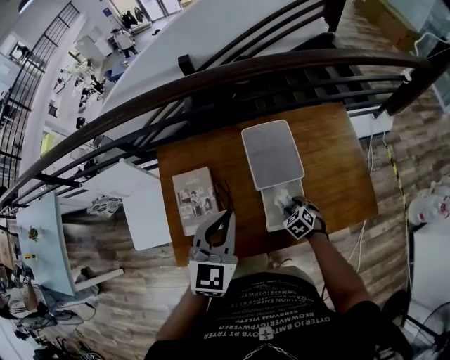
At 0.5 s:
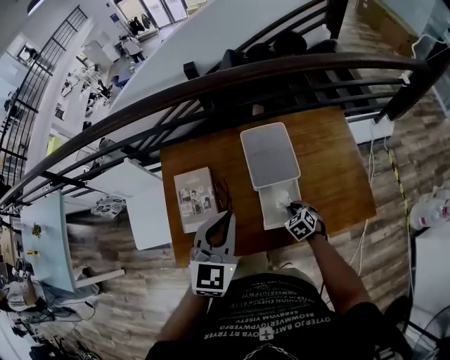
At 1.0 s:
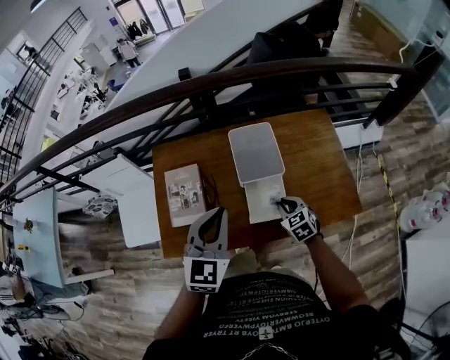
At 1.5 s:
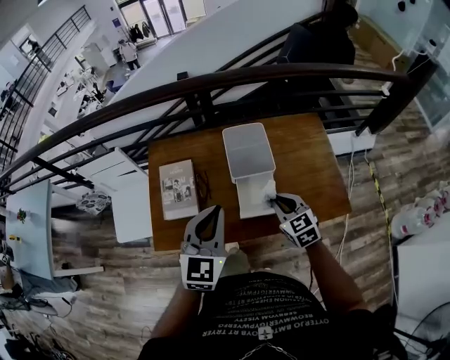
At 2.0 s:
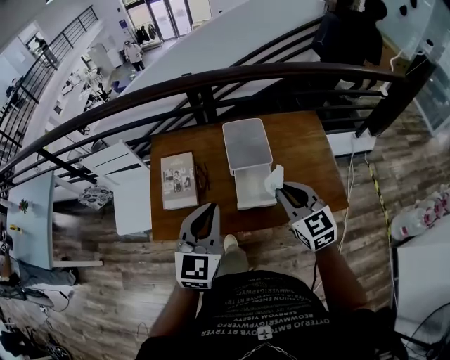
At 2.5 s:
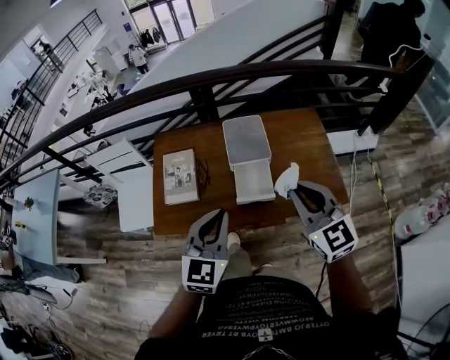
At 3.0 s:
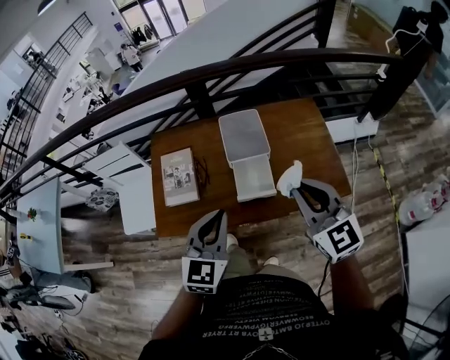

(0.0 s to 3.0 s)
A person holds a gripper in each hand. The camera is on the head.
0.0 s - 1.5 s: The left gripper heads backward, covering some 10 cm. The right gripper shifts some 25 cm upward, points its fingers some 30 degrees further upward, and closes its fingers.
1.5 s - 3.0 s: The right gripper heads upward and backward, covering about 25 cm, and rotates roughly 30 degrees. The left gripper goes roughly 10 cm backward.

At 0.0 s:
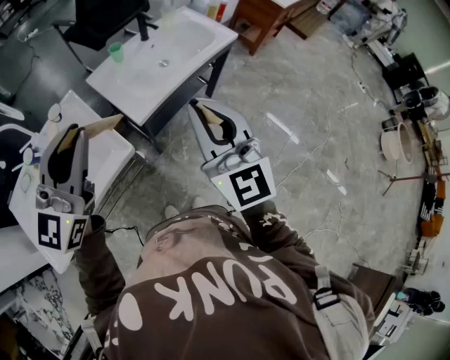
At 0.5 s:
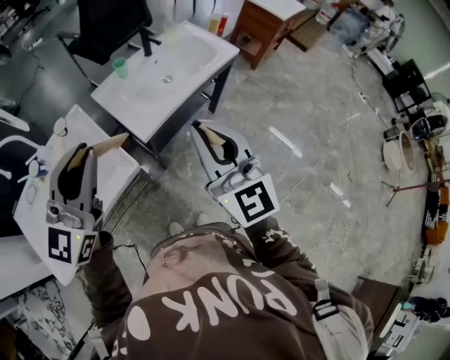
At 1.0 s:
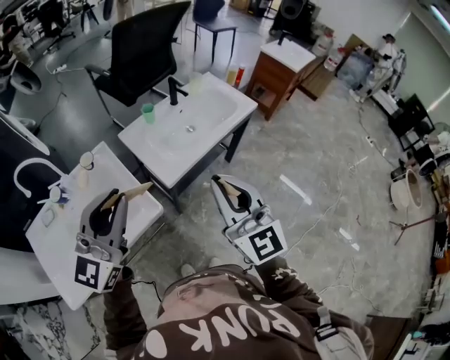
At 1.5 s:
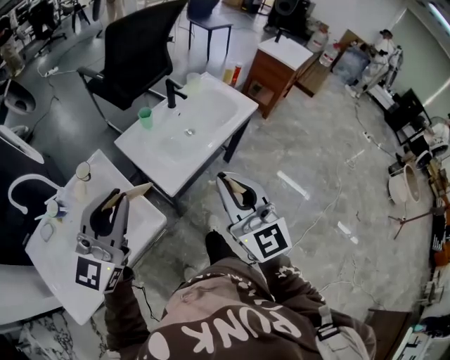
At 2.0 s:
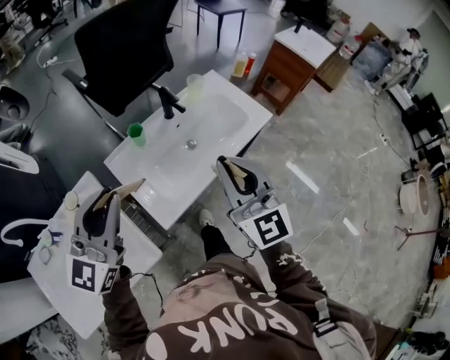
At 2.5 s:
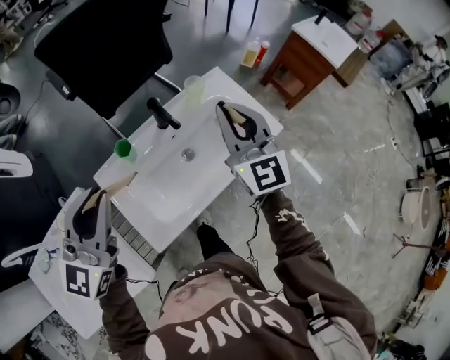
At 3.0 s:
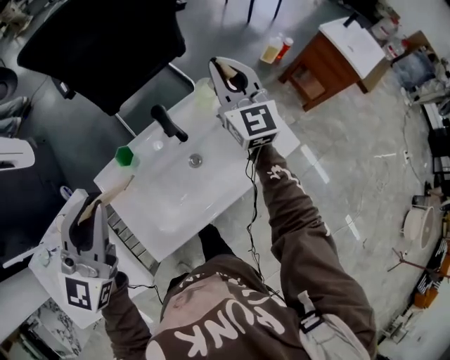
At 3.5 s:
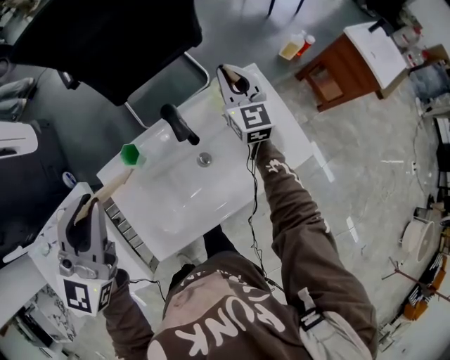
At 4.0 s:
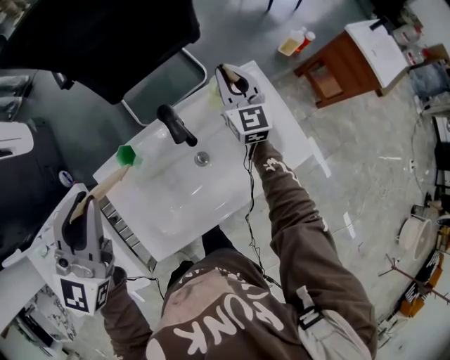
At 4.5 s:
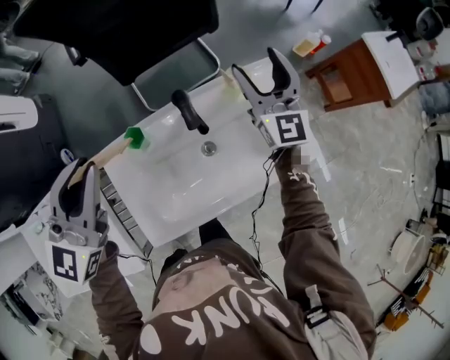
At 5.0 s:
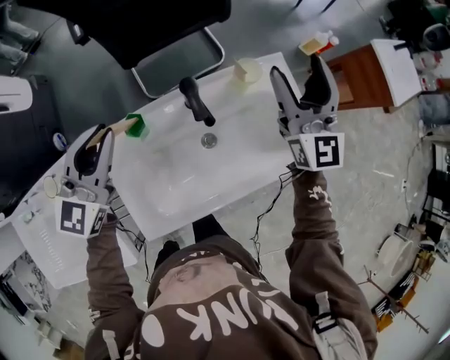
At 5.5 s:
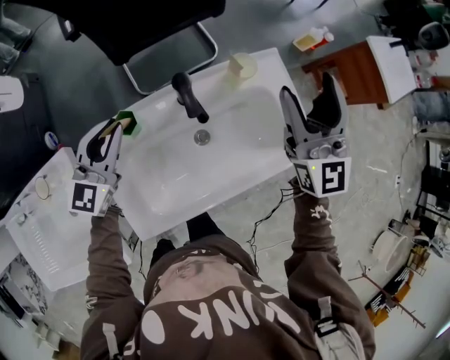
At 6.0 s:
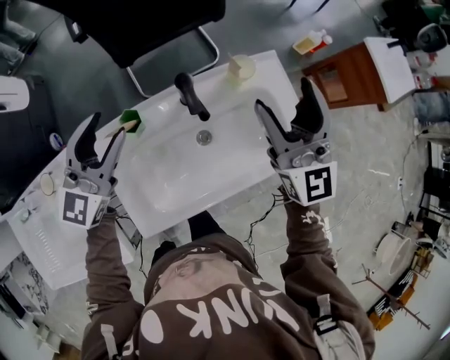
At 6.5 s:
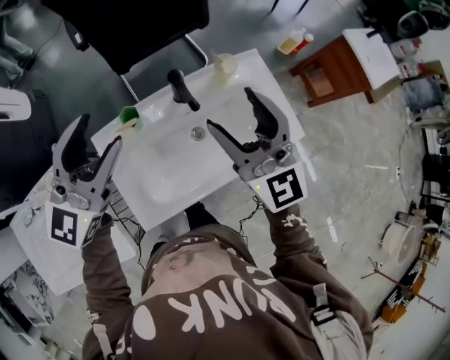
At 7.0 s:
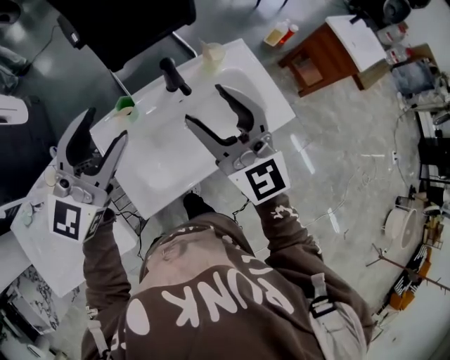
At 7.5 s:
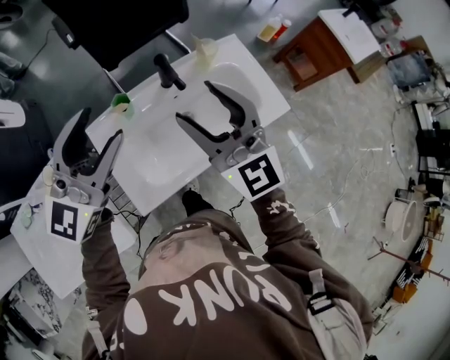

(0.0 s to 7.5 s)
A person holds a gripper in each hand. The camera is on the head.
0.0 s - 2.0 s: The two grippers go some 25 cm forward.
2.0 s - 4.0 s: The right gripper shifts about 50 cm forward. Meanwhile the left gripper is displaced forward by some 25 cm.
4.0 s - 5.5 s: The left gripper moves downward, some 20 cm, while the right gripper moves upward, backward and to the right, roughly 20 cm, and opens its fingers.
5.5 s - 7.5 s: The left gripper is displaced upward and backward by some 25 cm, changes its angle by some 20 degrees, and opens its fingers; the right gripper travels backward and to the left by roughly 20 cm.

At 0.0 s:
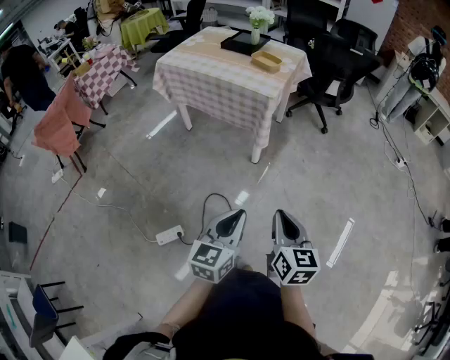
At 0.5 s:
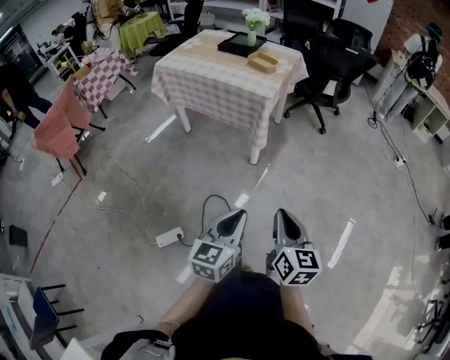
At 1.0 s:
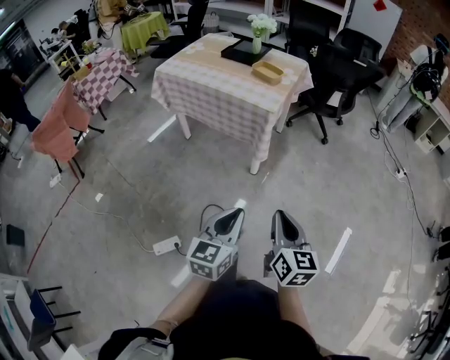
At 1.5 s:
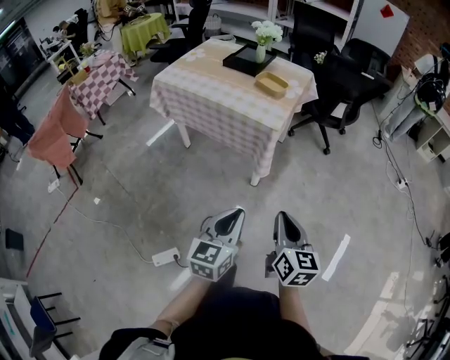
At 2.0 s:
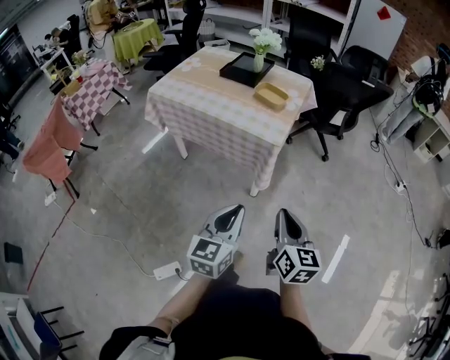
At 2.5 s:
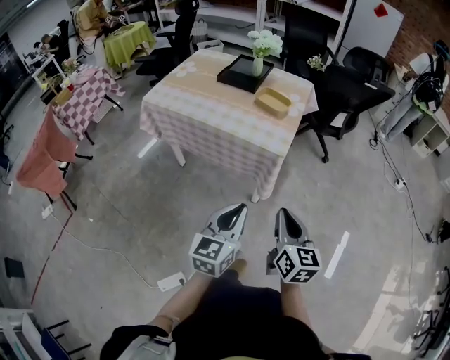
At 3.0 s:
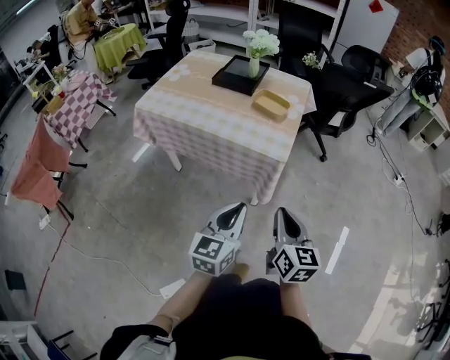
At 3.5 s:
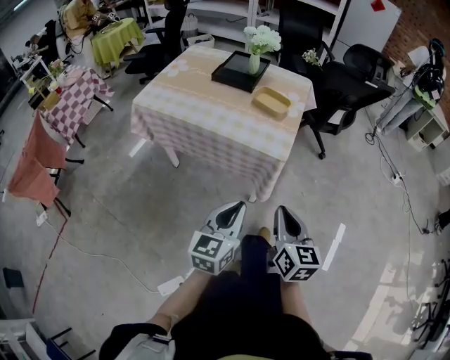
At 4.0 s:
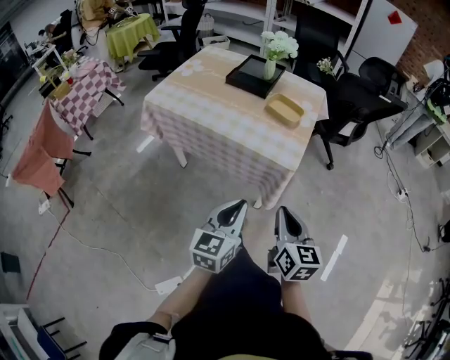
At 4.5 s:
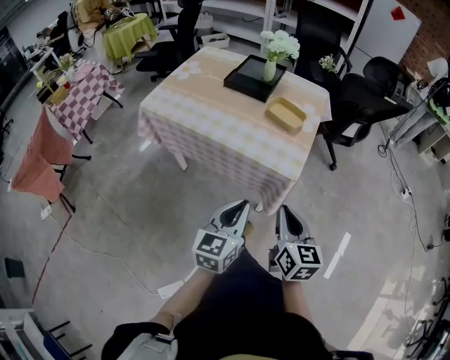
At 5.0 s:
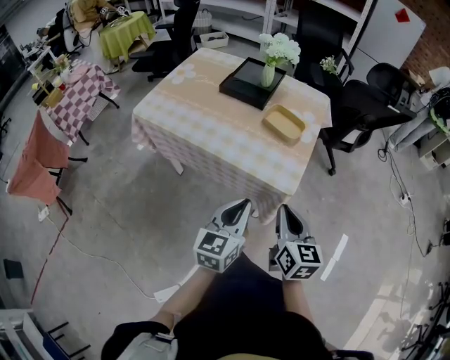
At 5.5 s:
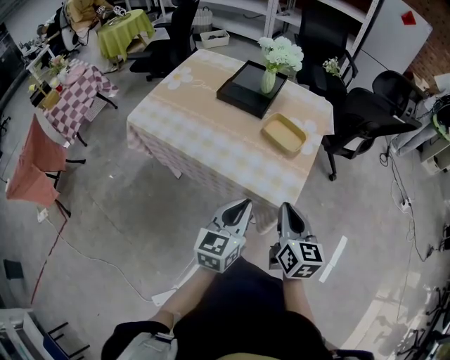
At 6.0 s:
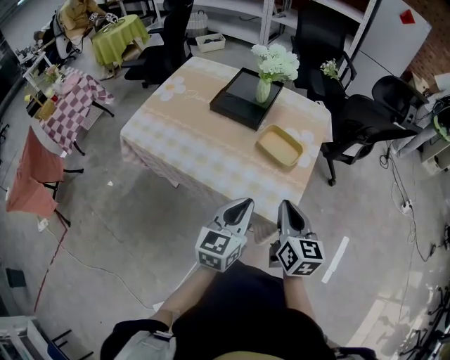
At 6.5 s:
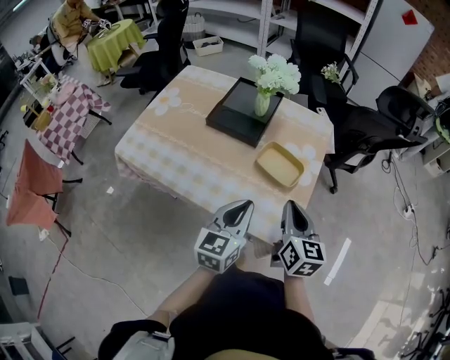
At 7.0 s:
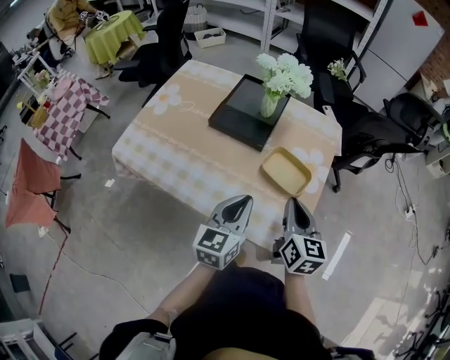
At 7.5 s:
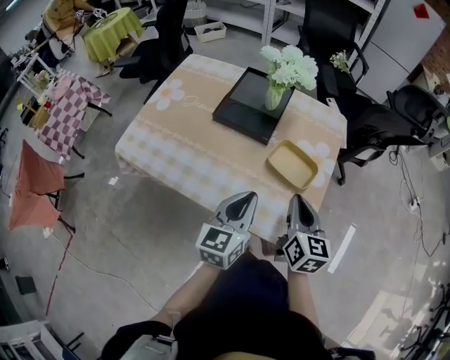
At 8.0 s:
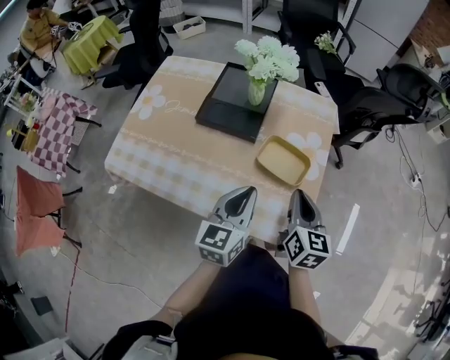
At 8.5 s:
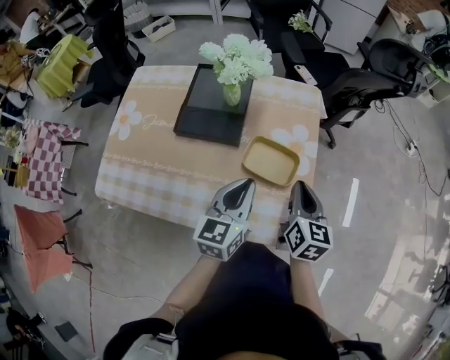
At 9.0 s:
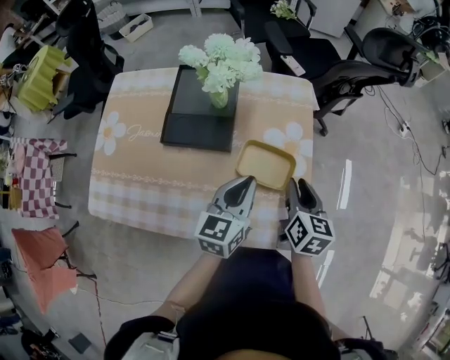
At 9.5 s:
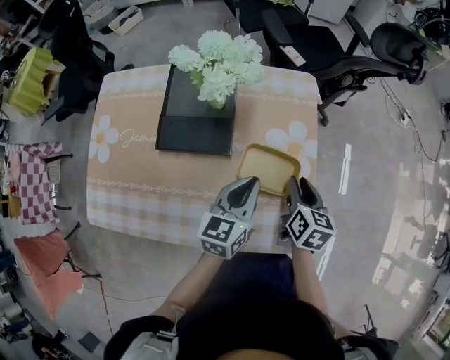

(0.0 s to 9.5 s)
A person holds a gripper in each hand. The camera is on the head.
0.0 s - 2.0 s: Both grippers move forward, approximately 25 cm.
2.0 s - 4.0 s: Both grippers travel together forward and to the left, some 15 cm.
4.0 s - 5.5 s: Both grippers move forward, about 20 cm.
5.5 s - 7.5 s: The grippers both shift forward by some 15 cm.
7.5 s - 9.5 s: The left gripper heads forward, covering about 15 cm, and swivels some 20 degrees; the right gripper goes some 15 cm forward and downward, changes its angle by roughly 30 degrees, and opens.

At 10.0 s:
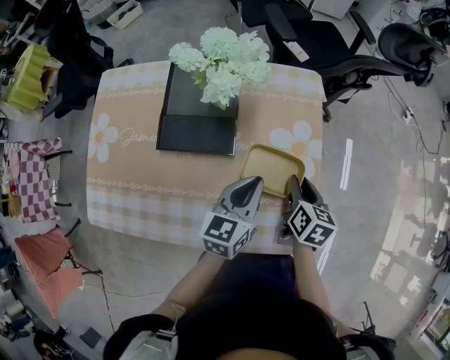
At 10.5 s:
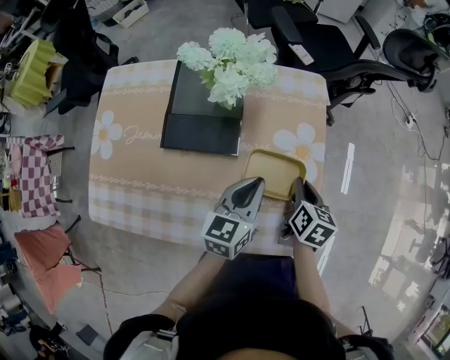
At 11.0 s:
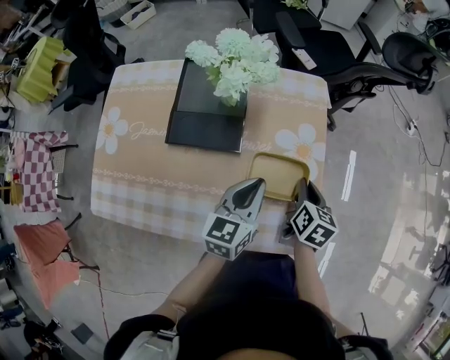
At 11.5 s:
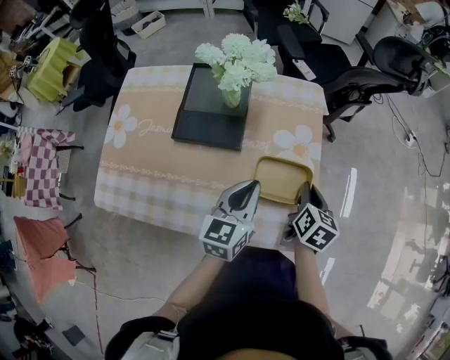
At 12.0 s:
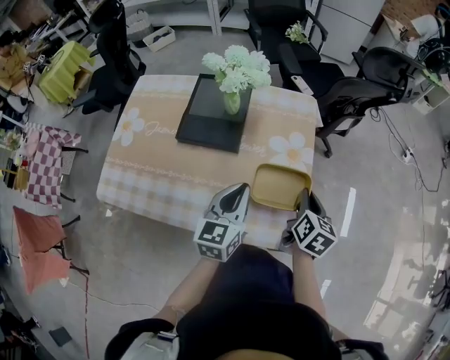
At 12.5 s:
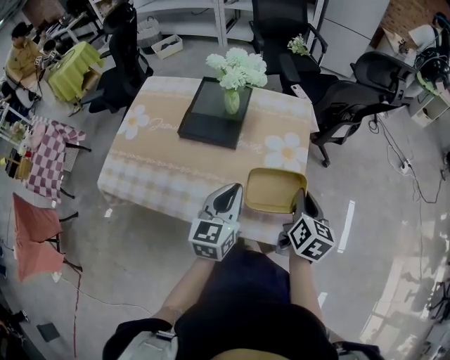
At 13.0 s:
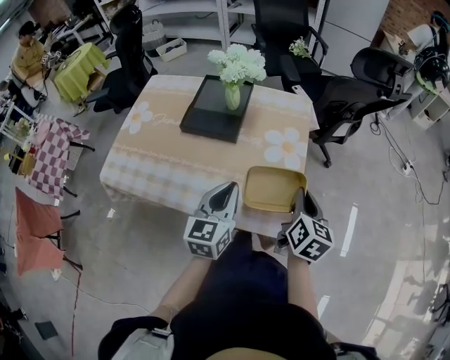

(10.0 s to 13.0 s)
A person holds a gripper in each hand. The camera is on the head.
10.0 s - 11.5 s: The left gripper moves roughly 5 cm; the right gripper closes its fingers.
11.5 s - 13.0 s: The left gripper heads backward, covering approximately 10 cm, while the right gripper moves backward and upward, about 10 cm.

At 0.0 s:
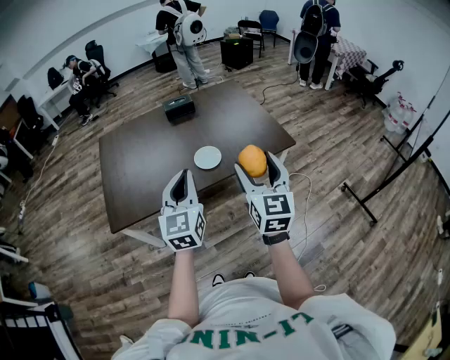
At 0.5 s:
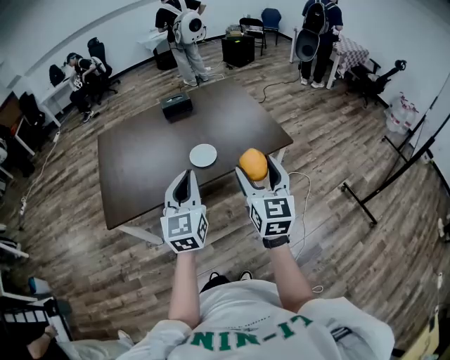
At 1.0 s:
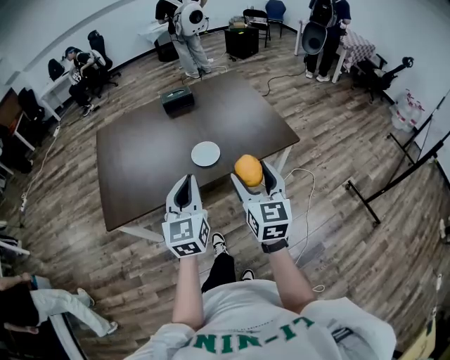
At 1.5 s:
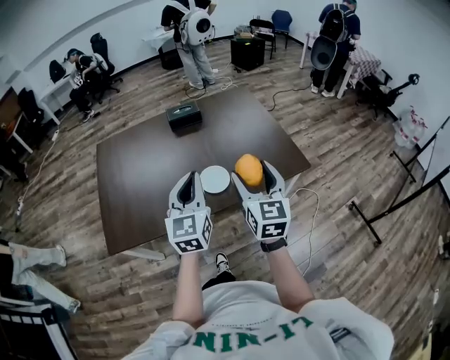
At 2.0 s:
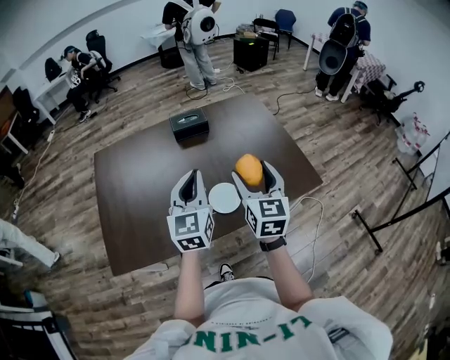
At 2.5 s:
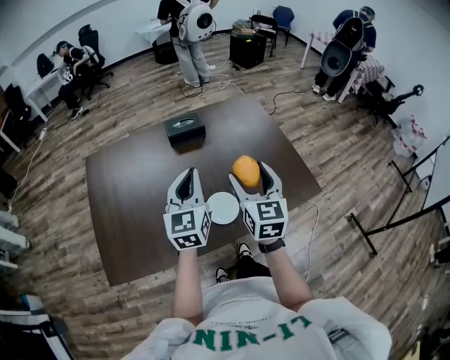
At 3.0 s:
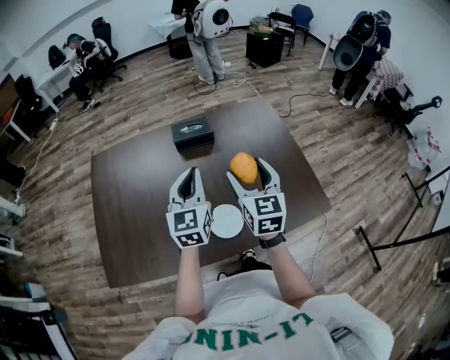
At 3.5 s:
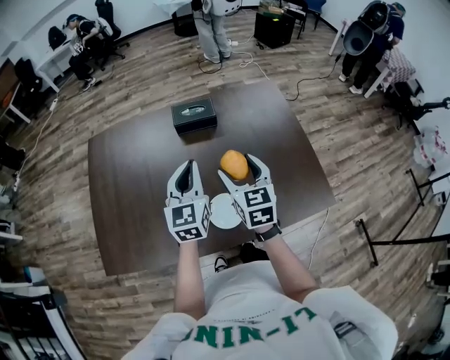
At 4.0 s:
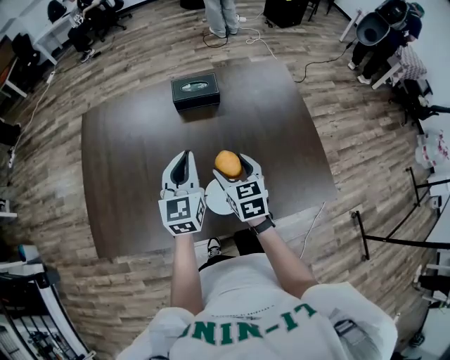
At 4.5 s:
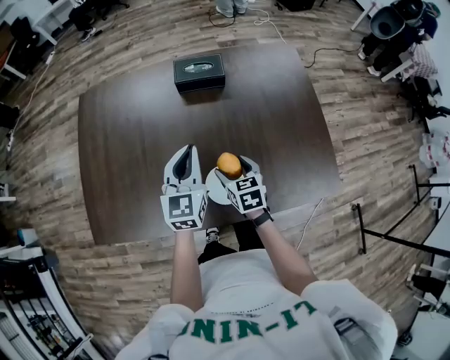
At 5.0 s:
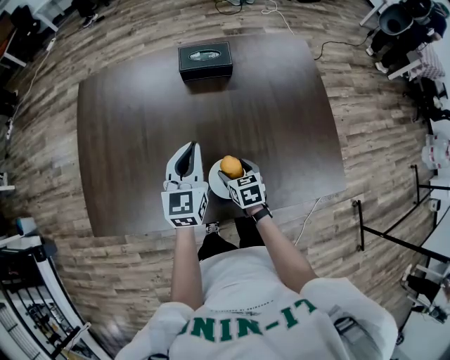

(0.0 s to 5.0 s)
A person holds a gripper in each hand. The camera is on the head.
0.0 s - 2.5 s: Both grippers travel together forward, approximately 40 cm.
2.5 s - 5.0 s: The left gripper is displaced downward and forward by some 20 cm. The right gripper goes about 35 cm downward, and tips its fingers downward by about 40 degrees.
